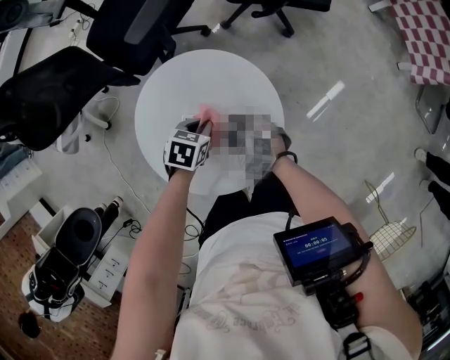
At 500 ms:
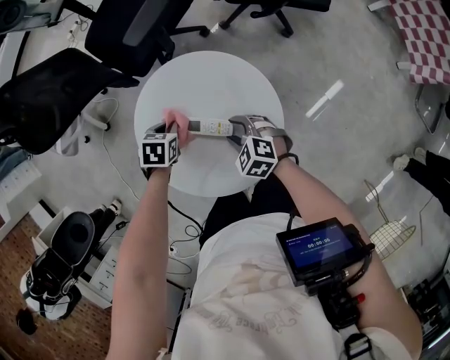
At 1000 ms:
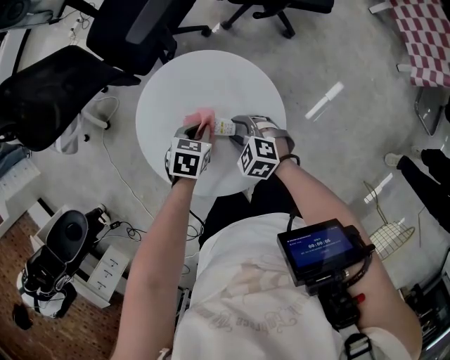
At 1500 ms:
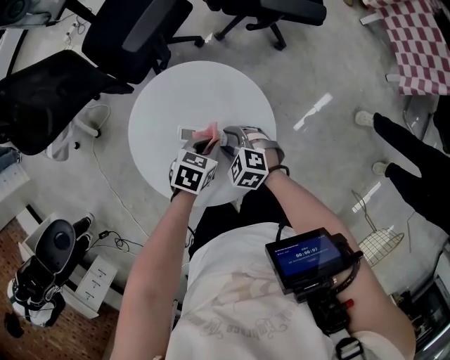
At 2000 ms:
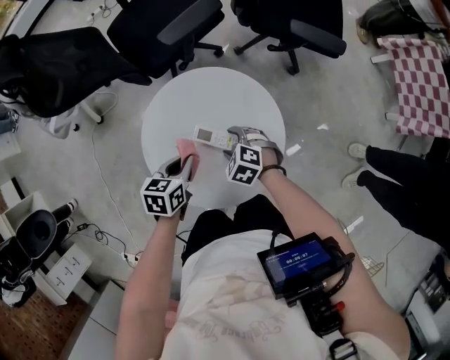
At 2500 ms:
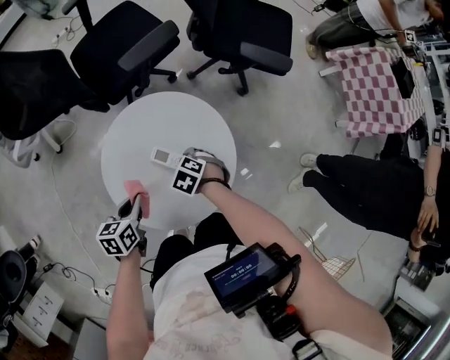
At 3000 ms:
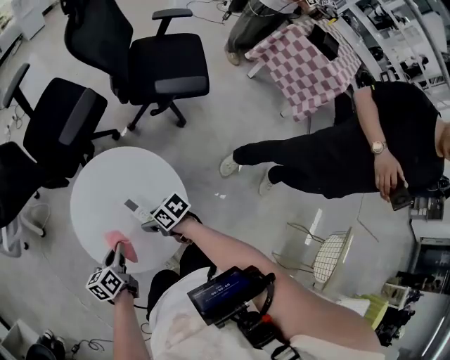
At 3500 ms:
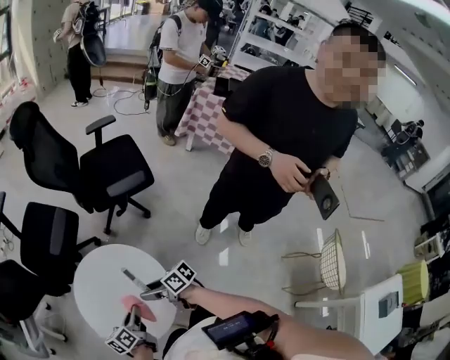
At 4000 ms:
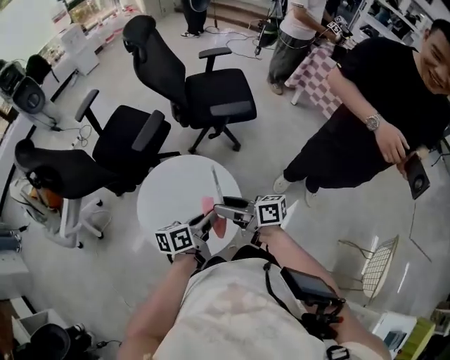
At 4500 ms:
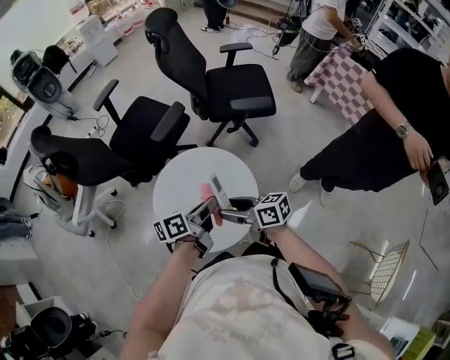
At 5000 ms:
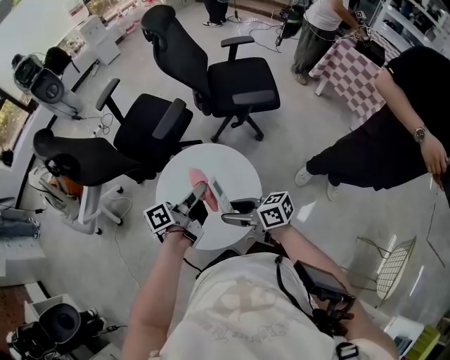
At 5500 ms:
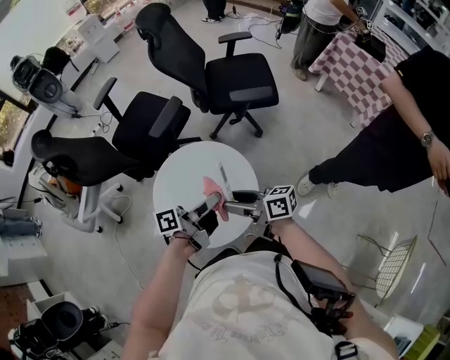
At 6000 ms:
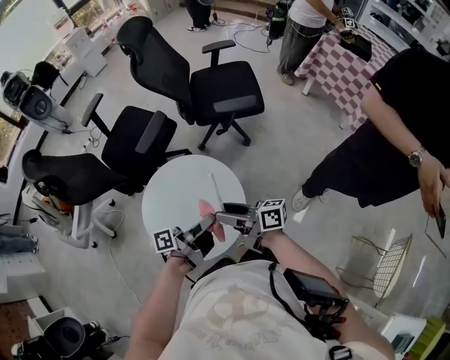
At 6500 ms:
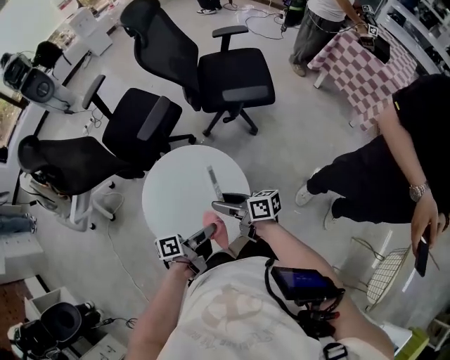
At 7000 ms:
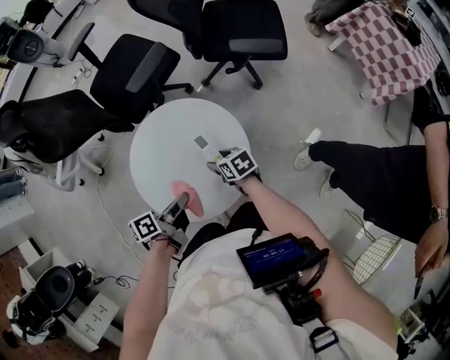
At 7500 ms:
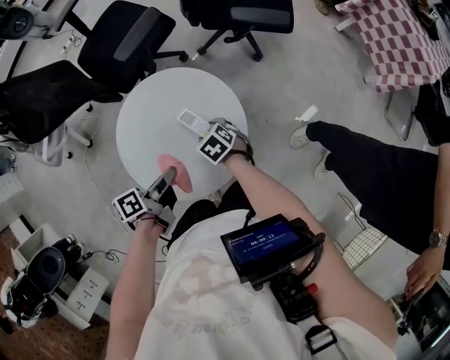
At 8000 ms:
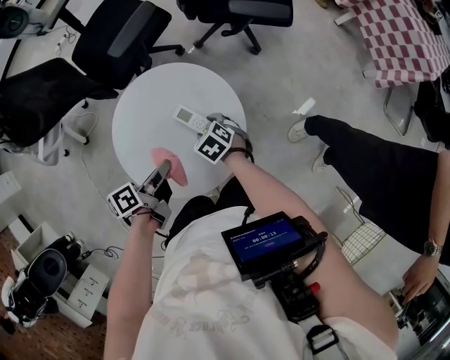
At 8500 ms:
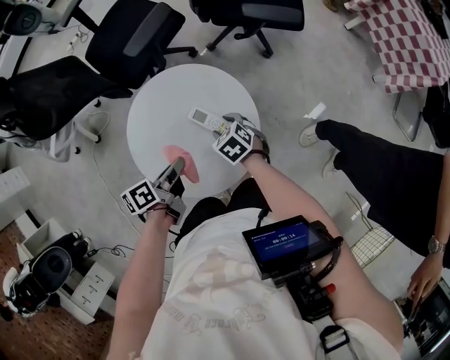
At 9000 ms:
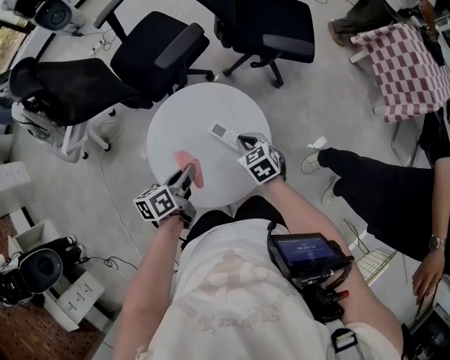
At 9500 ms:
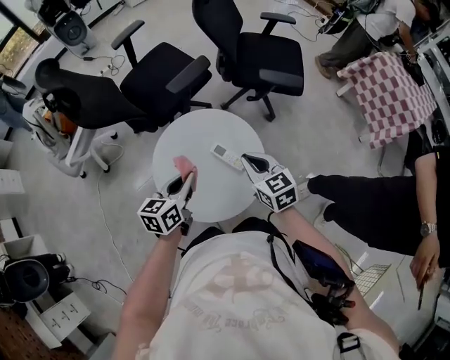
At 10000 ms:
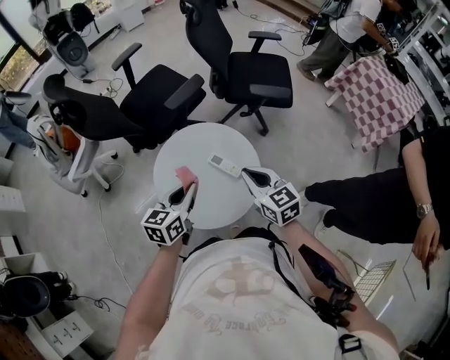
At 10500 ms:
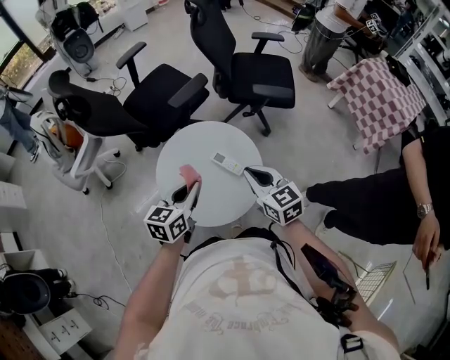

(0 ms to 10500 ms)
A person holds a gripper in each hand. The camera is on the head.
0 ms - 2000 ms: The left gripper changes place by approximately 10 cm, and turns by approximately 30 degrees.
2000 ms - 4000 ms: The left gripper changes place by about 20 cm, and tilts its fingers roughly 30 degrees upward. The right gripper shifts some 25 cm upward, and tilts its fingers some 60 degrees upward.
4000 ms - 6500 ms: The right gripper is displaced downward by about 10 cm; the left gripper travels forward and back again, some 5 cm each way, and swivels some 30 degrees.
6500 ms - 8500 ms: The right gripper goes approximately 15 cm downward, and points its fingers roughly 50 degrees further downward. Meanwhile the left gripper is displaced to the left, downward and forward by some 15 cm, and rotates approximately 30 degrees.
8500 ms - 10500 ms: The left gripper shifts roughly 15 cm upward, and rolls clockwise, seen from behind, by approximately 50 degrees, while the right gripper travels upward by about 25 cm, angles its fingers upward, by about 40 degrees, and closes up.

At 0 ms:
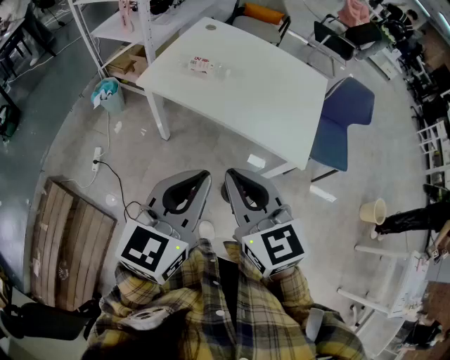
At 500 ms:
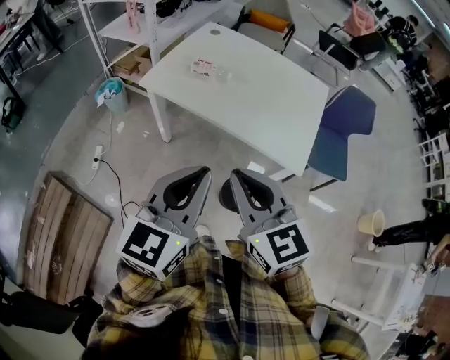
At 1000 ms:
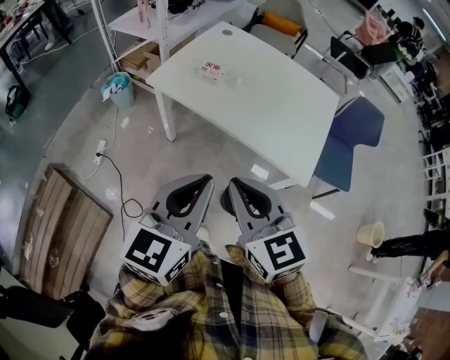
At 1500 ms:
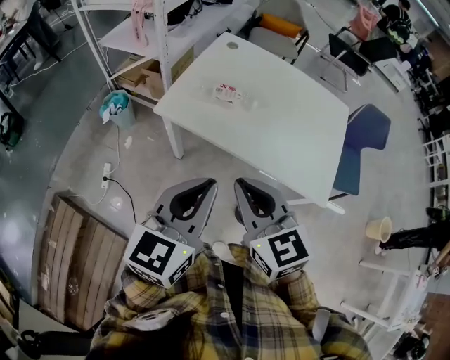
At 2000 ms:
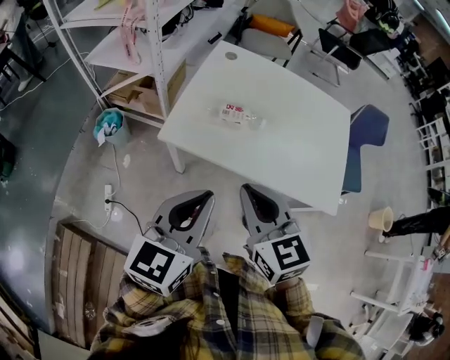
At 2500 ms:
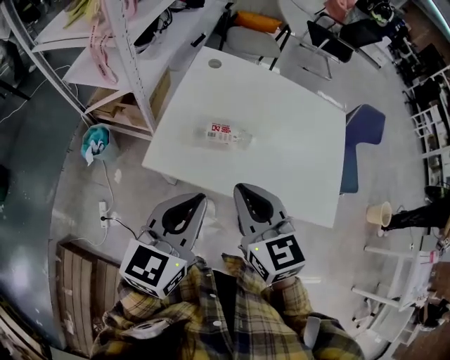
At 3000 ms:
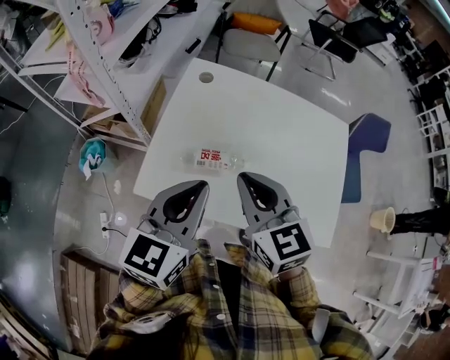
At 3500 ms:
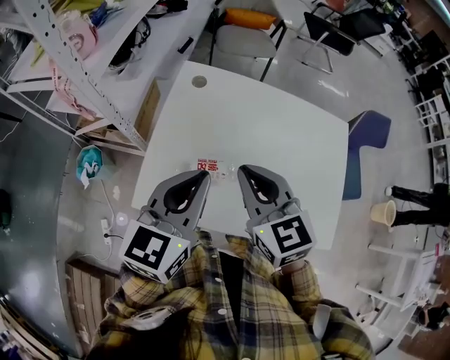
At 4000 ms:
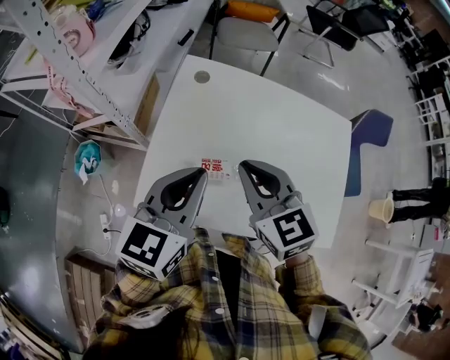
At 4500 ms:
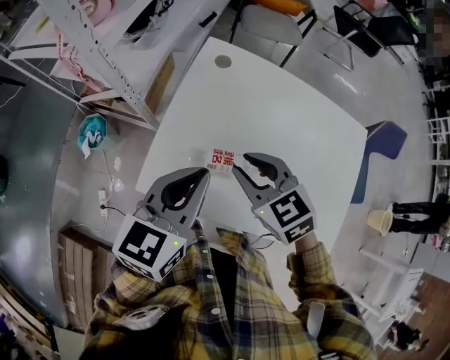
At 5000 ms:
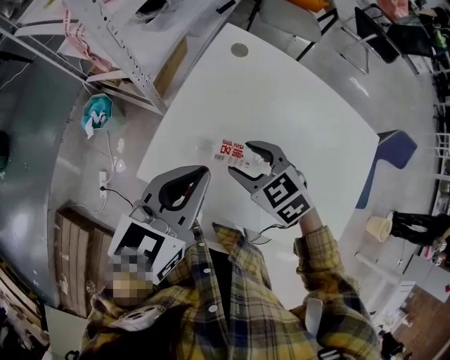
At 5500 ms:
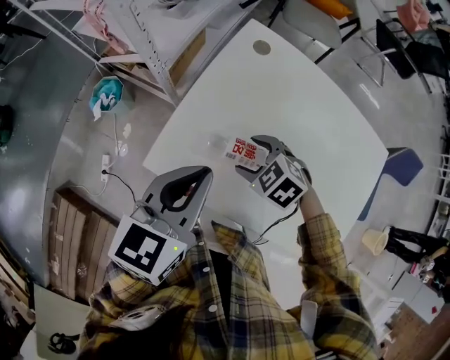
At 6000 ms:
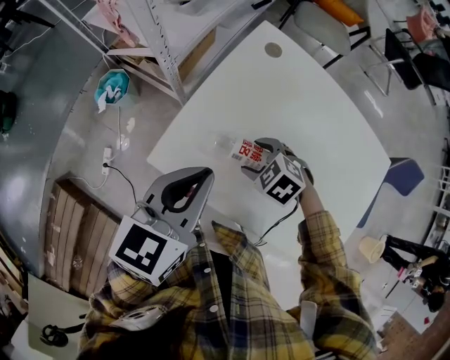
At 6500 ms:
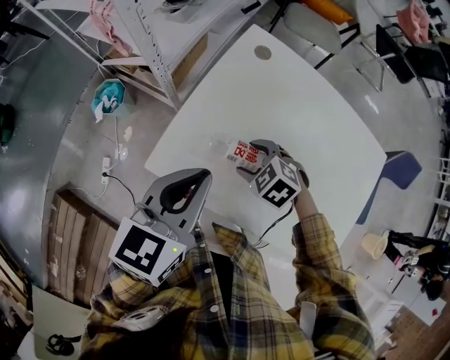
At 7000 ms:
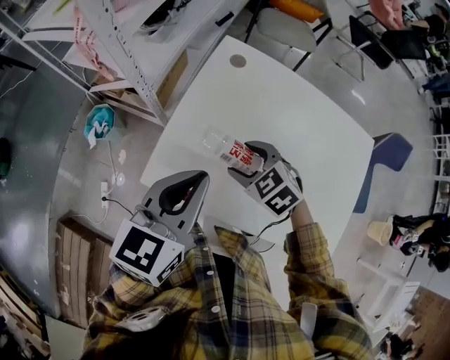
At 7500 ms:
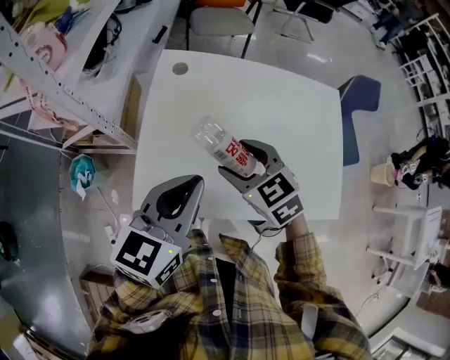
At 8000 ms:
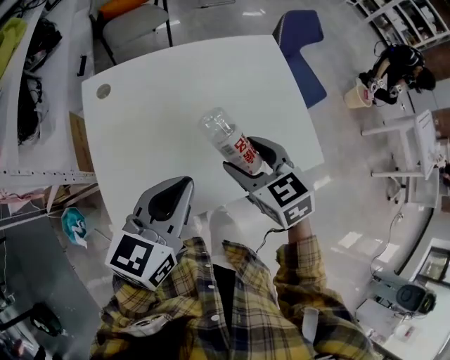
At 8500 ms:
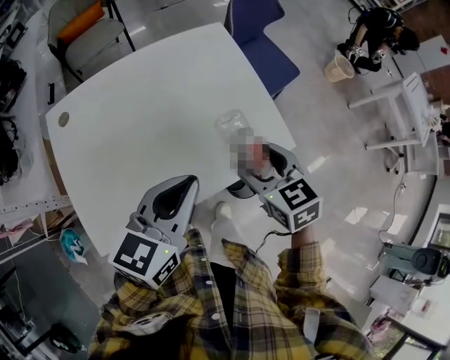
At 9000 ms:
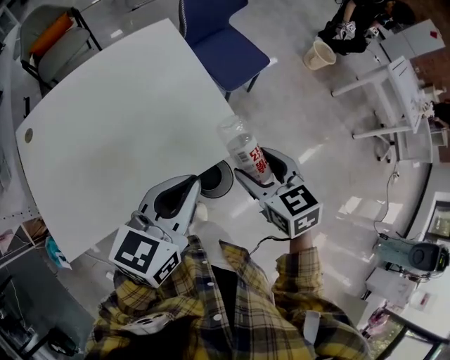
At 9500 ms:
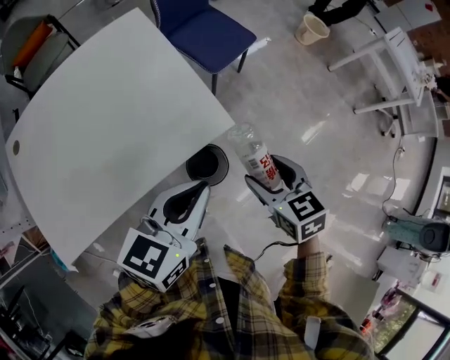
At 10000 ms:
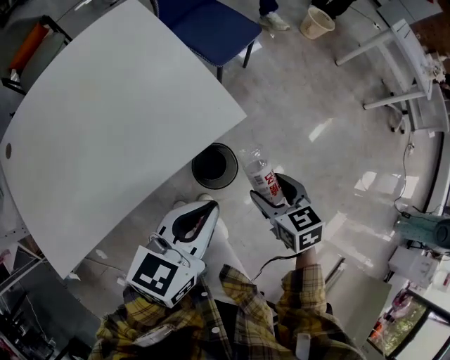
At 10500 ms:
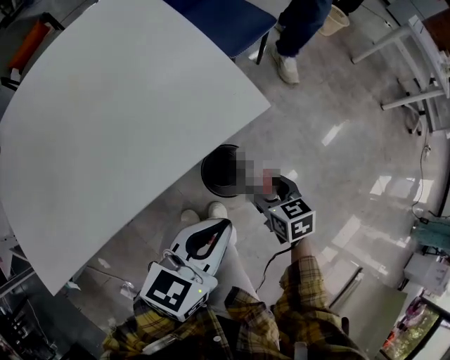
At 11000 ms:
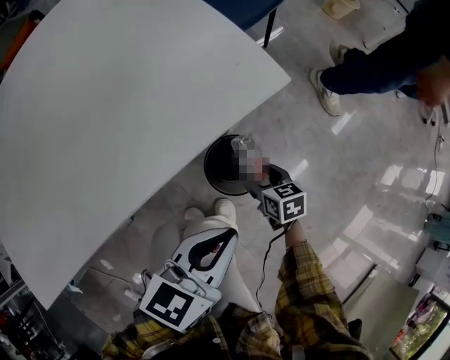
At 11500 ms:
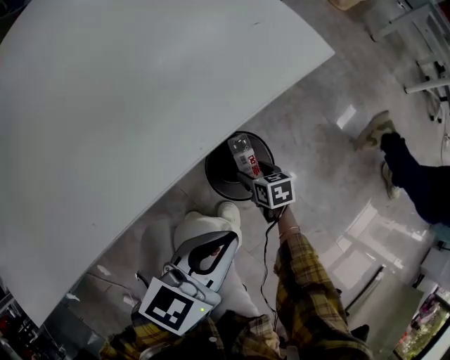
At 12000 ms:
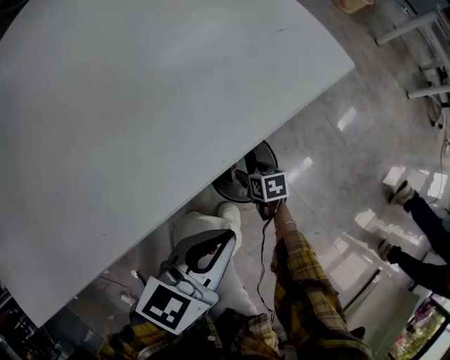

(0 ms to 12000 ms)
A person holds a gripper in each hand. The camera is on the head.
0 ms - 2000 ms: Both grippers travel together forward and to the left, some 25 cm.
2000 ms - 4000 ms: Both grippers move forward, approximately 30 cm.
4000 ms - 6000 ms: The left gripper shifts approximately 5 cm downward. Meanwhile the right gripper travels downward by approximately 25 cm, angles its fingers downward, by approximately 40 degrees, and opens up.
6000 ms - 8000 ms: The right gripper ends up about 25 cm from where it was, and rotates roughly 80 degrees, while the left gripper moves some 15 cm, and rotates approximately 50 degrees.
8000 ms - 10000 ms: Both grippers are carried roughly 50 cm. The right gripper changes its angle by about 40 degrees. Meanwhile the left gripper changes its angle by some 30 degrees.
10000 ms - 12000 ms: The left gripper goes roughly 30 cm downward; the right gripper moves downward, roughly 50 cm, and turns by approximately 20 degrees.

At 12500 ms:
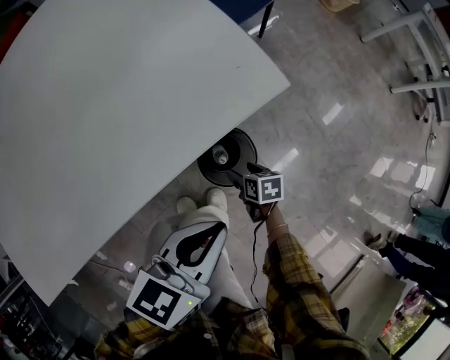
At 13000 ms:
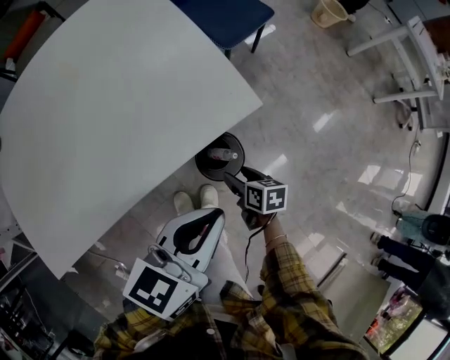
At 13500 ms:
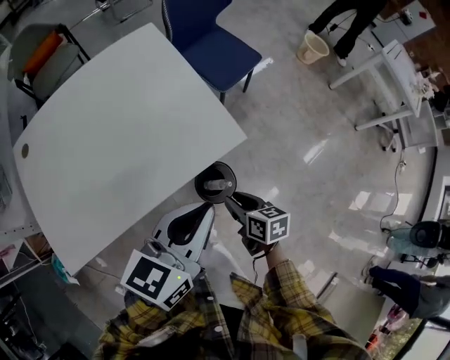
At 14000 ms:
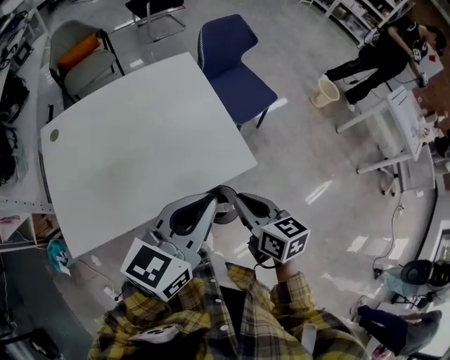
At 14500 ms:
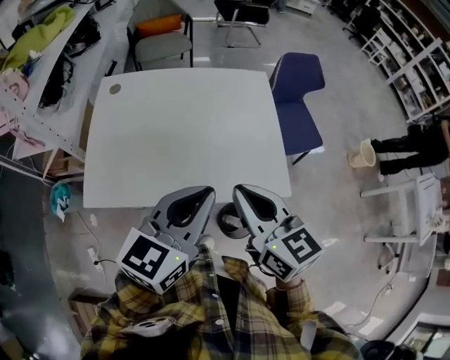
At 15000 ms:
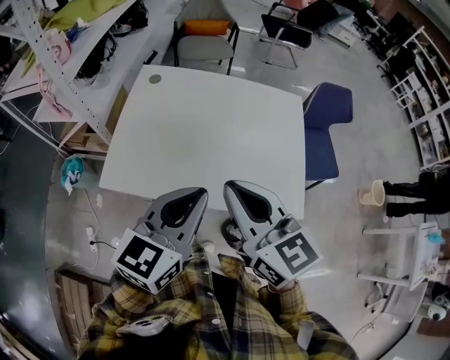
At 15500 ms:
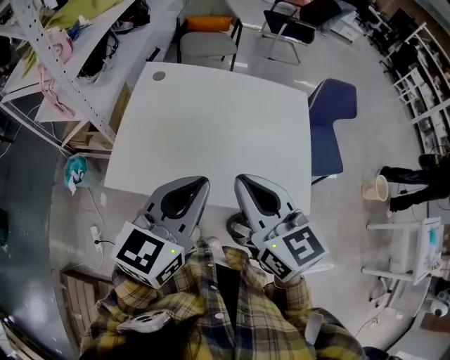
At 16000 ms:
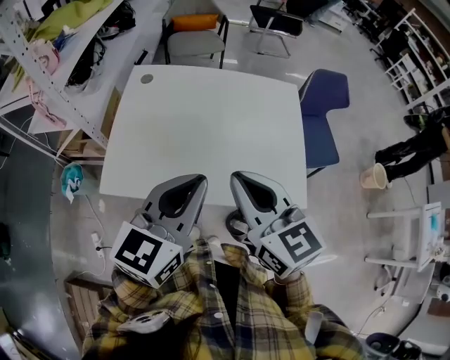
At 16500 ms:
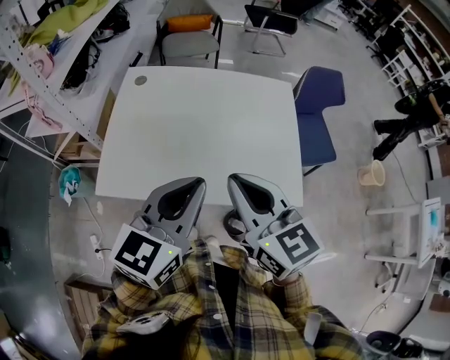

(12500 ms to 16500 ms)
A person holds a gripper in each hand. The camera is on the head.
12500 ms - 14500 ms: The left gripper travels upward by roughly 40 cm, and turns by some 40 degrees. The right gripper moves upward, some 70 cm, tilts its fingers roughly 40 degrees upward, and closes.
14500 ms - 16500 ms: The two grippers go roughly 10 cm to the left.
